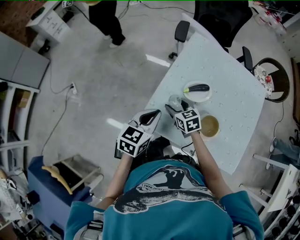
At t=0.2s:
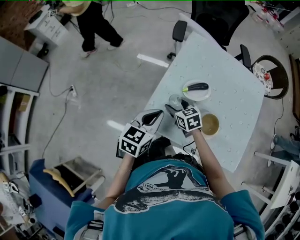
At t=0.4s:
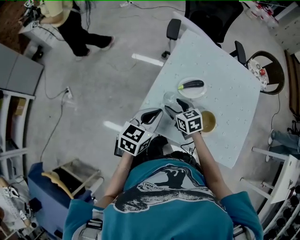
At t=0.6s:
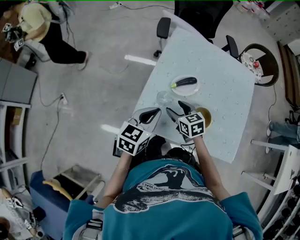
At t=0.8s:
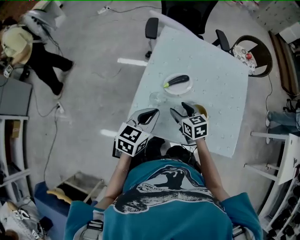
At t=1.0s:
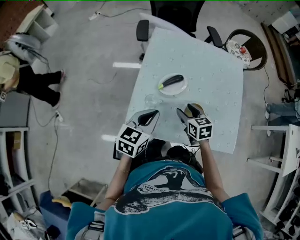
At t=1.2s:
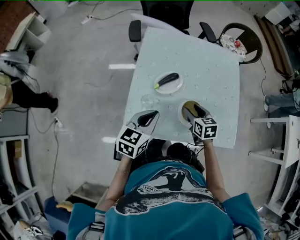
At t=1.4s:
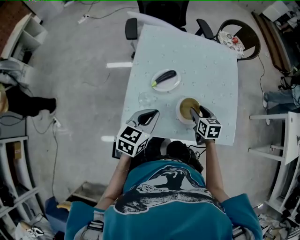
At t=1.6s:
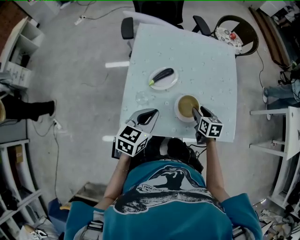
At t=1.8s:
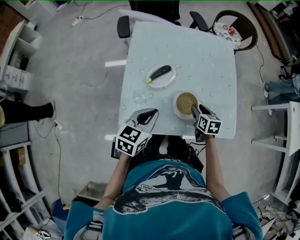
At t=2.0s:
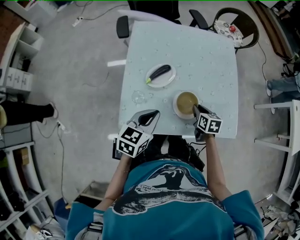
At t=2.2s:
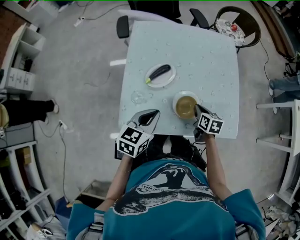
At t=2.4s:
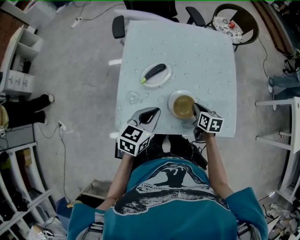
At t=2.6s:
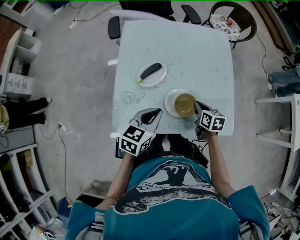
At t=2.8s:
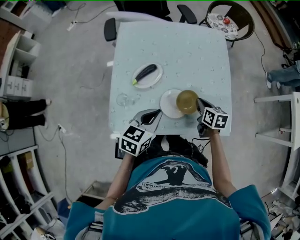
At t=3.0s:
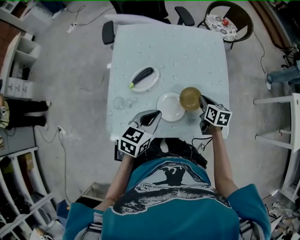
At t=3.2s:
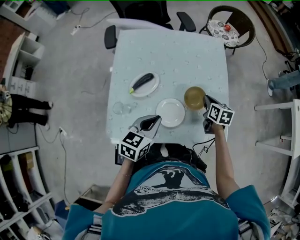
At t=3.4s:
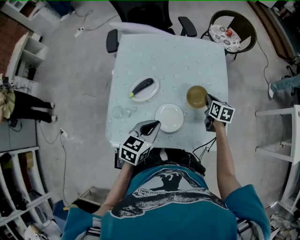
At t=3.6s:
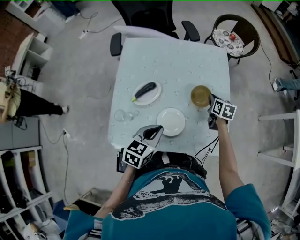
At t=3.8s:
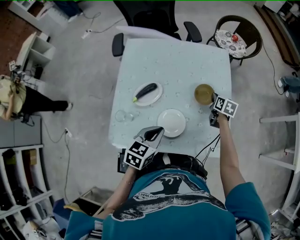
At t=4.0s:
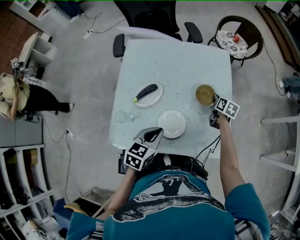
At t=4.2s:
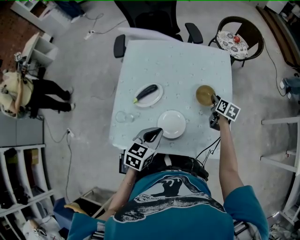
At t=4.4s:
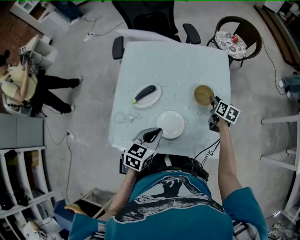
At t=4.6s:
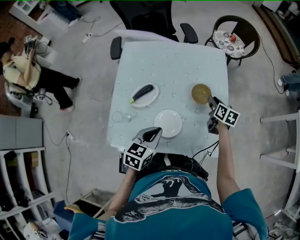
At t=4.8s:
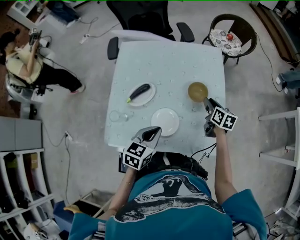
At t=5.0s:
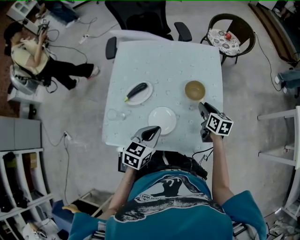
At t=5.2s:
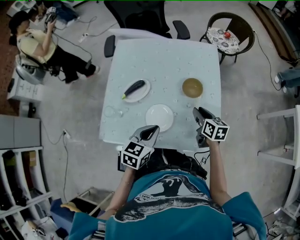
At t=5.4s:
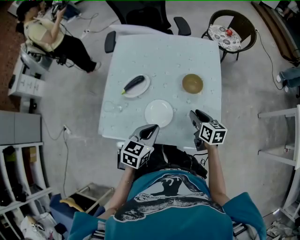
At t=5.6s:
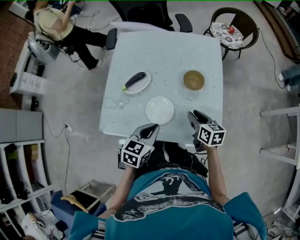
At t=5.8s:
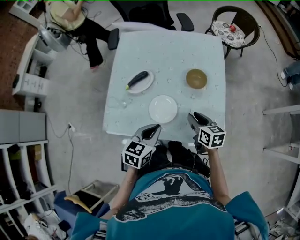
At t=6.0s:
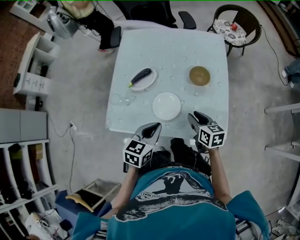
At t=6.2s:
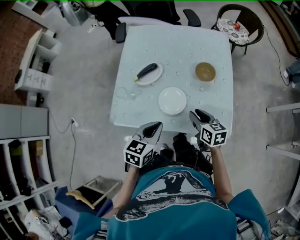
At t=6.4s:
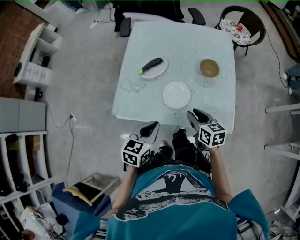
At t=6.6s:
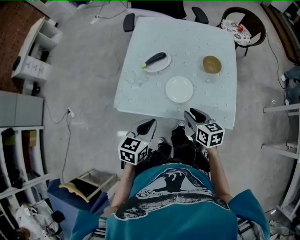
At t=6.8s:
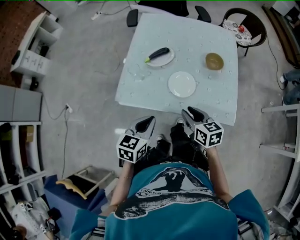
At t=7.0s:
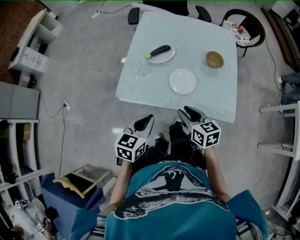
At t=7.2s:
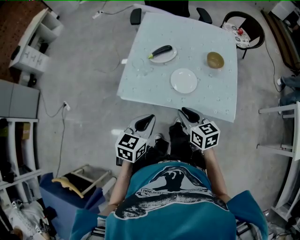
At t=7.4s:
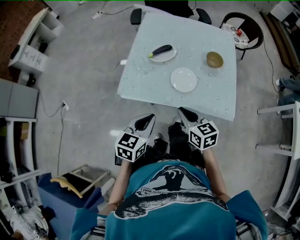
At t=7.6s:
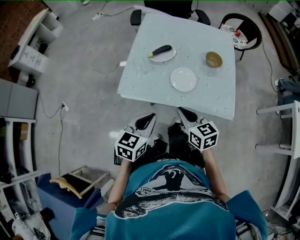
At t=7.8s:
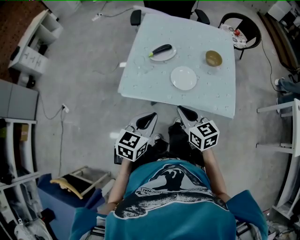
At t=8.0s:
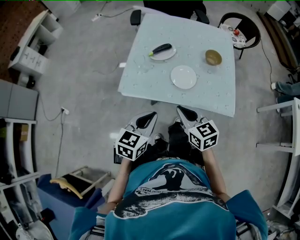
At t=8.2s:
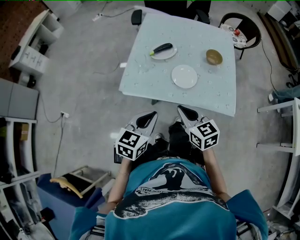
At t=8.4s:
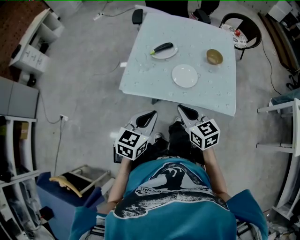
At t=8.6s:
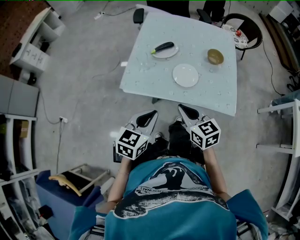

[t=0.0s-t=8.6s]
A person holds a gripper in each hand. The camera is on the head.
t=0.0s to t=1.4s: The right gripper shifts by approximately 25 cm, and swivels about 40 degrees, while the left gripper changes place by some 10 cm, and rotates about 20 degrees.
t=1.4s to t=2.8s: Both grippers travel together to the right, some 10 cm. The right gripper closes up.
t=2.8s to t=4.4s: The right gripper heads forward and to the right, covering some 20 cm, and opens its fingers.
t=4.4s to t=5.8s: The right gripper heads backward, covering roughly 20 cm, and turns by about 20 degrees; the left gripper moves backward, about 5 cm.
t=5.8s to t=7.2s: The two grippers go roughly 20 cm to the left and backward.
t=7.2s to t=8.6s: The grippers make only small movements.

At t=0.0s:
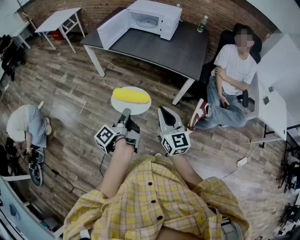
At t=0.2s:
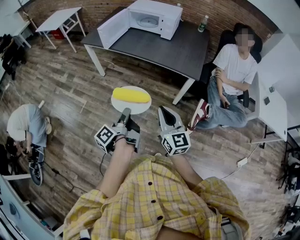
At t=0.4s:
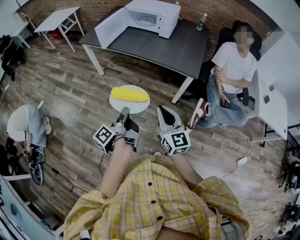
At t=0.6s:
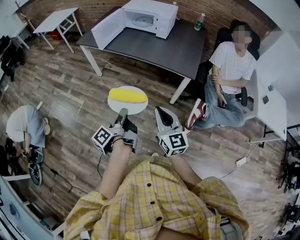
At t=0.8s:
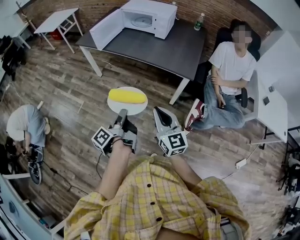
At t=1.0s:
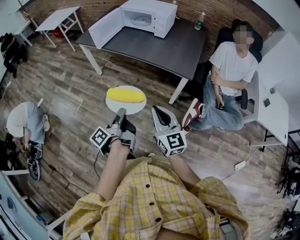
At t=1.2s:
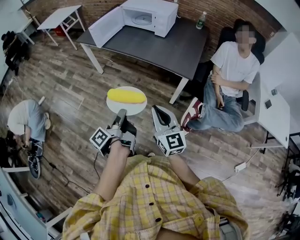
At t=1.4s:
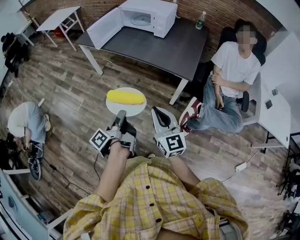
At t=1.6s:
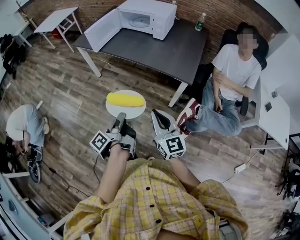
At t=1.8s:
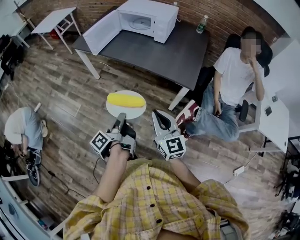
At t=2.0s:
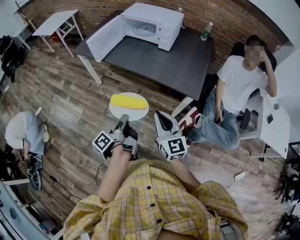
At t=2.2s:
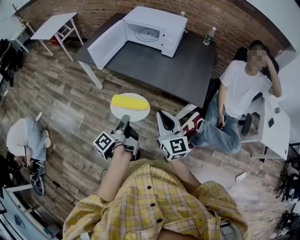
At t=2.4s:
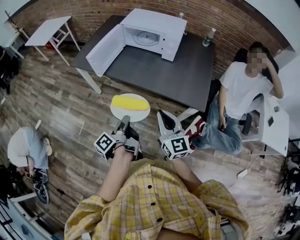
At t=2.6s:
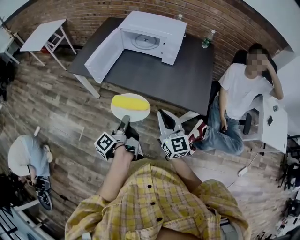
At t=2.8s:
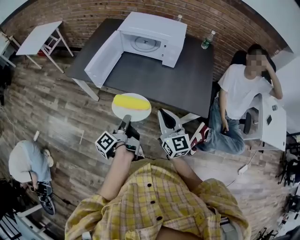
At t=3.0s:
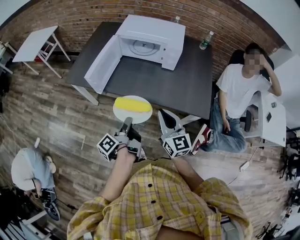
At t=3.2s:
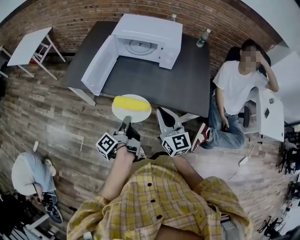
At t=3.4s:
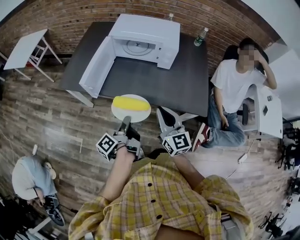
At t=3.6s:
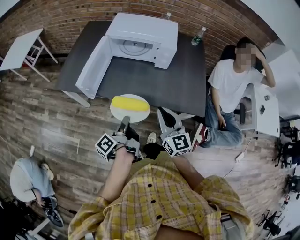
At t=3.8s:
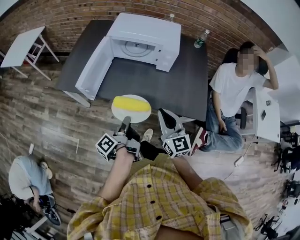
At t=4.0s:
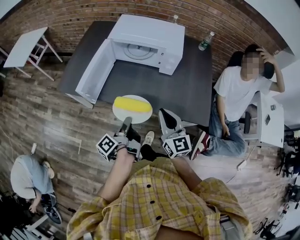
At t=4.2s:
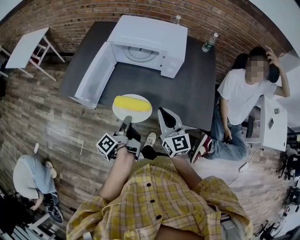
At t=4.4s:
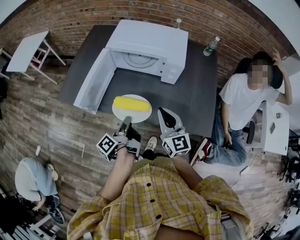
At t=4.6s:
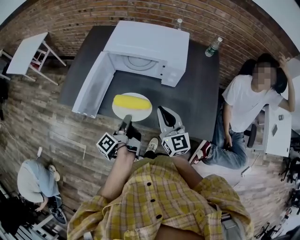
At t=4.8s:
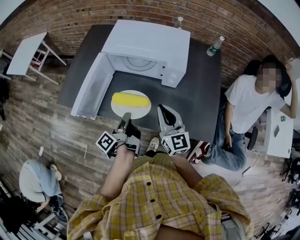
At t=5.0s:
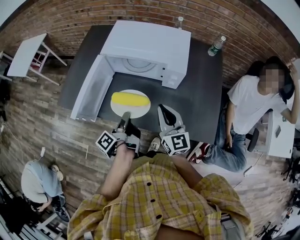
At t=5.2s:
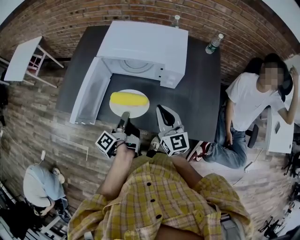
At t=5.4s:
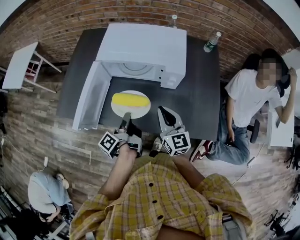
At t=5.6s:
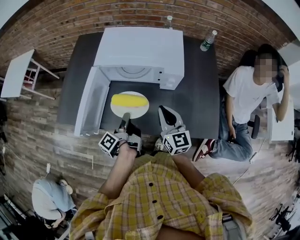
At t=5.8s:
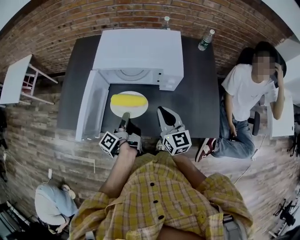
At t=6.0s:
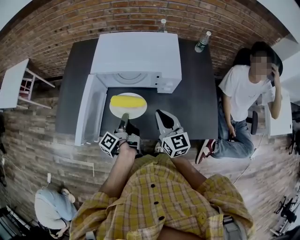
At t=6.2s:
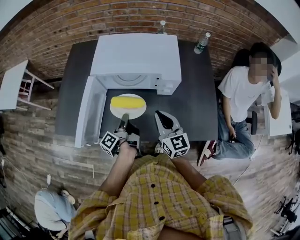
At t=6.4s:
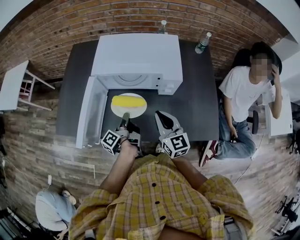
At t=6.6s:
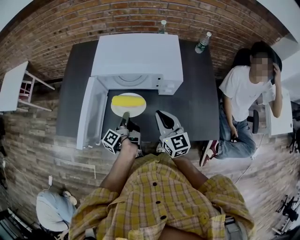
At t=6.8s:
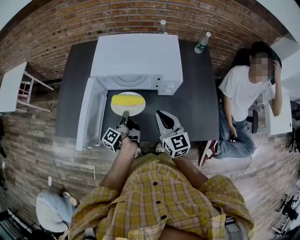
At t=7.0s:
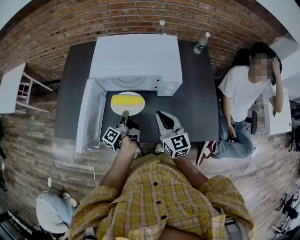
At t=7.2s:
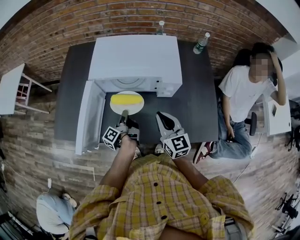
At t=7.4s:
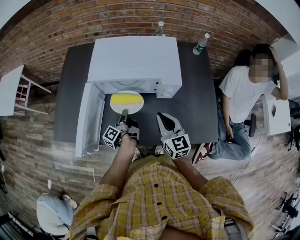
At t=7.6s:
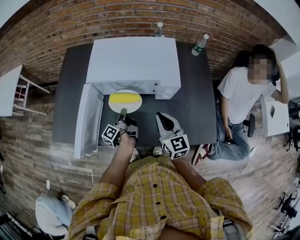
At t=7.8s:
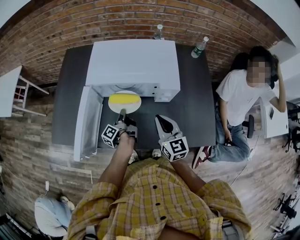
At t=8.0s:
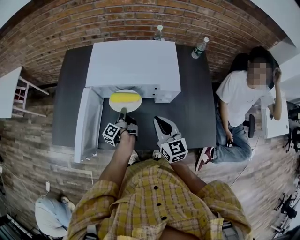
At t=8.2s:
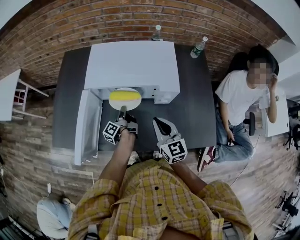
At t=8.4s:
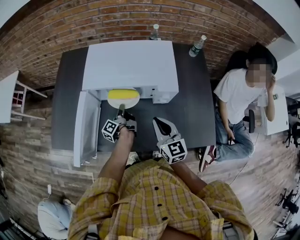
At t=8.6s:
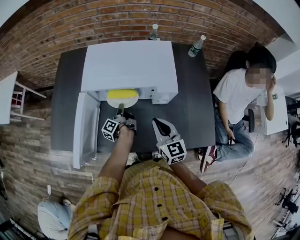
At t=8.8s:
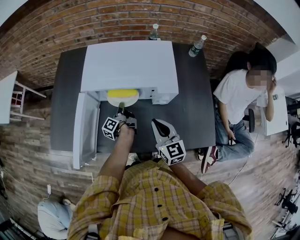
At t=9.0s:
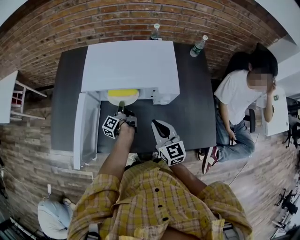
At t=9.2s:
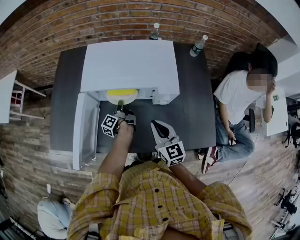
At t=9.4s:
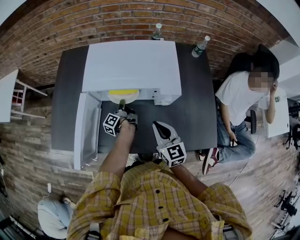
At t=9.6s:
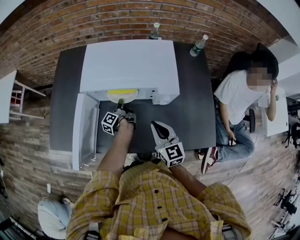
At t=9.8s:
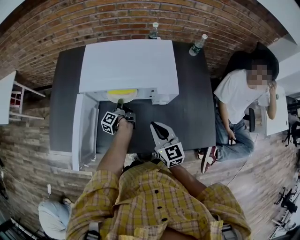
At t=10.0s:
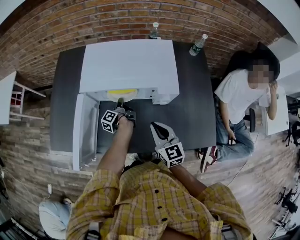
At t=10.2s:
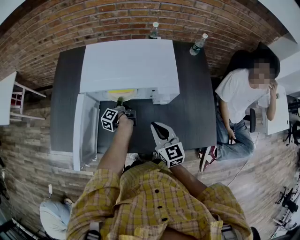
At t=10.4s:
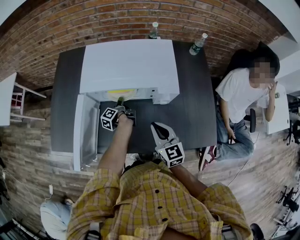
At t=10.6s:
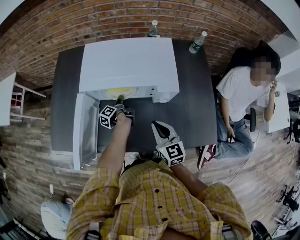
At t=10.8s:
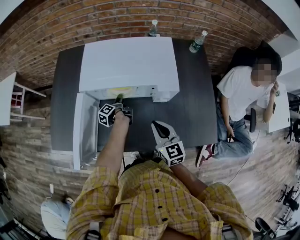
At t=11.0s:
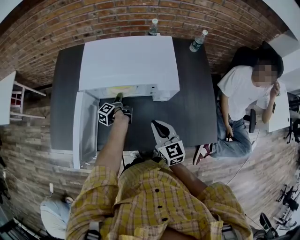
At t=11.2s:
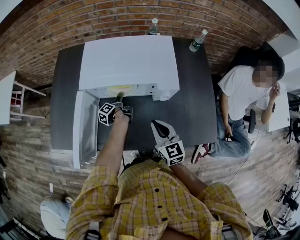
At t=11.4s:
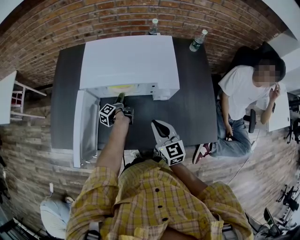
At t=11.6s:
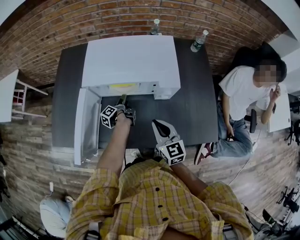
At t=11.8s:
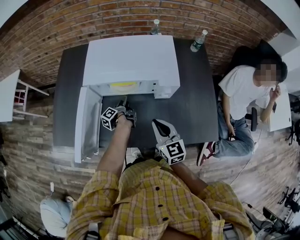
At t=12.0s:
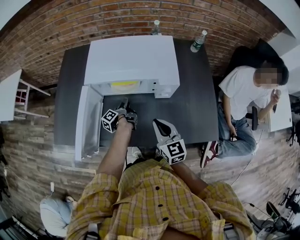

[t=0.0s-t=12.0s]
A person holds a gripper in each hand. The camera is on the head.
t=0.0s to t=1.6s: The right gripper moves approximately 10 cm.
t=1.6s to t=3.0s: The right gripper shifts by some 35 cm.
t=3.0s to t=4.4s: The right gripper shifts by roughly 15 cm.
t=4.4s to t=6.0s: The right gripper moves about 10 cm.

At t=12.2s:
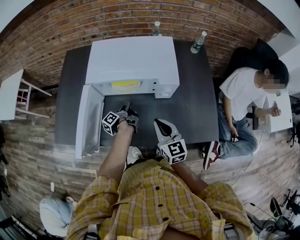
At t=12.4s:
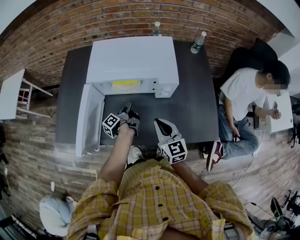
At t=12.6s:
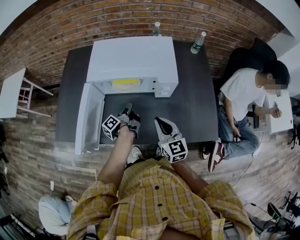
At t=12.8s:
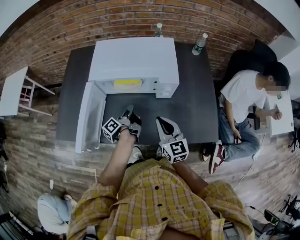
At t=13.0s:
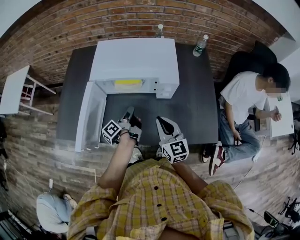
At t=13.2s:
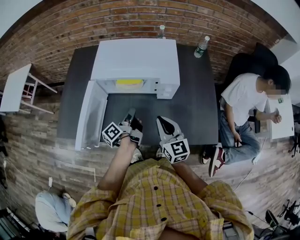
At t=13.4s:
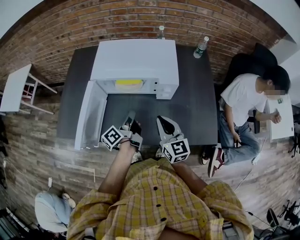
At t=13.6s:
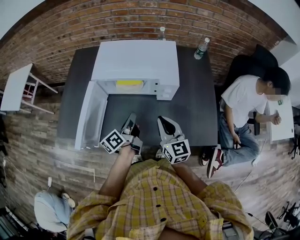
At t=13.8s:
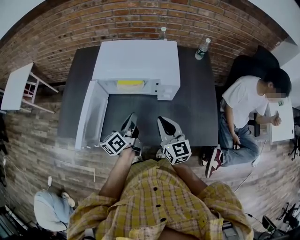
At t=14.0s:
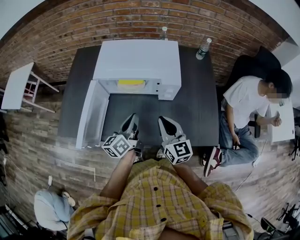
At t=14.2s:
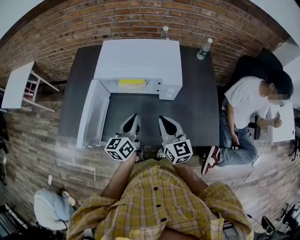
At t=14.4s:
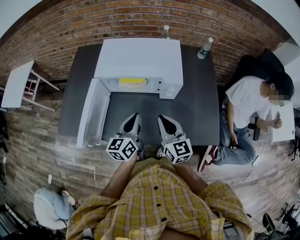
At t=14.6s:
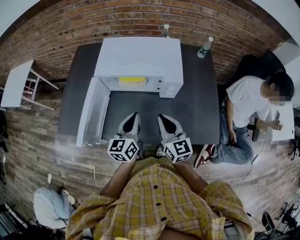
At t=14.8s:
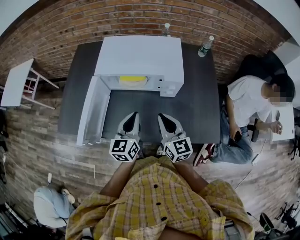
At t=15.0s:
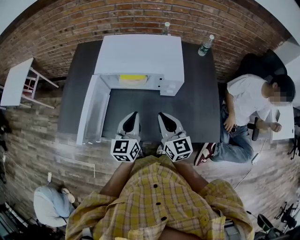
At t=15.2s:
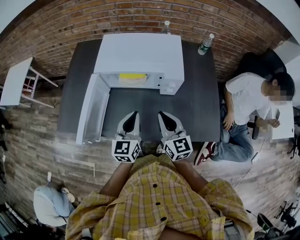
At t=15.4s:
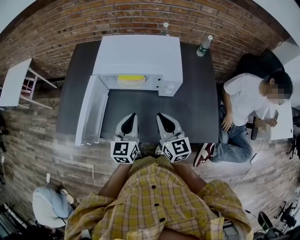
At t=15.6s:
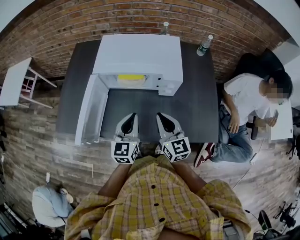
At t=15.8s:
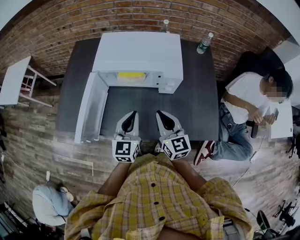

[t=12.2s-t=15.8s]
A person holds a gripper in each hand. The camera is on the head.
t=12.2s to t=14.0s: The right gripper travels upward by about 5 cm.
